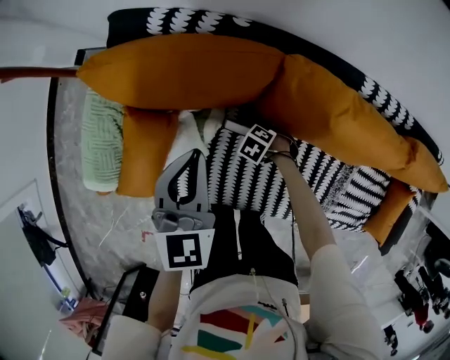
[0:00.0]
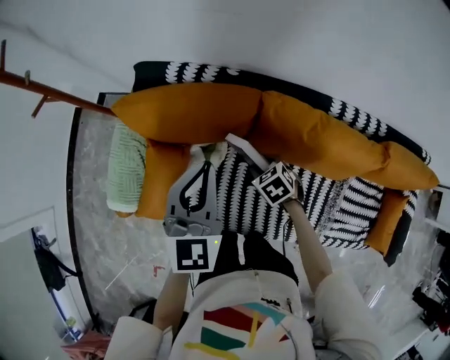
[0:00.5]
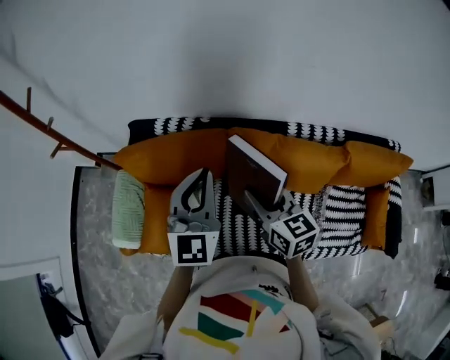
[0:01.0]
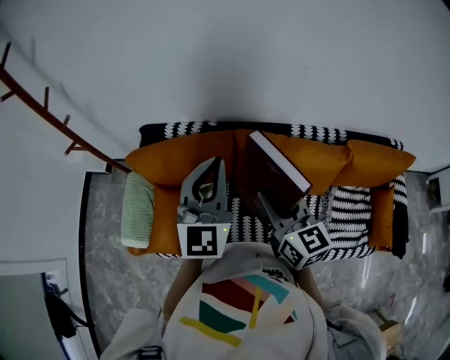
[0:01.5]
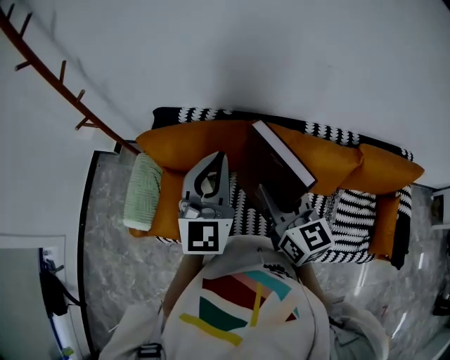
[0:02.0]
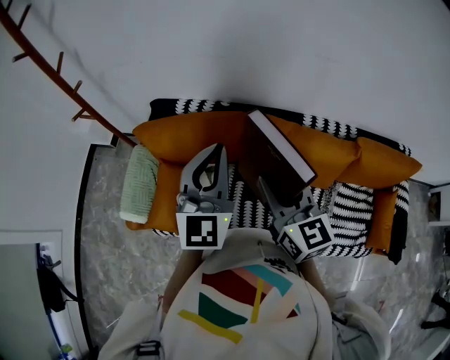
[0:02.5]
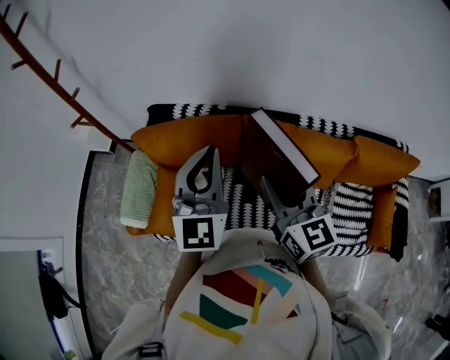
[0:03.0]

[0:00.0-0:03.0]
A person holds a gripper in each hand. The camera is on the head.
0:00.0 to 0:01.5: The left gripper moves upward, some 30 cm, and changes its angle by approximately 30 degrees. The right gripper travels upward by about 60 cm, and points its fingers approximately 70 degrees further upward.
0:01.5 to 0:03.0: The grippers move only a little.

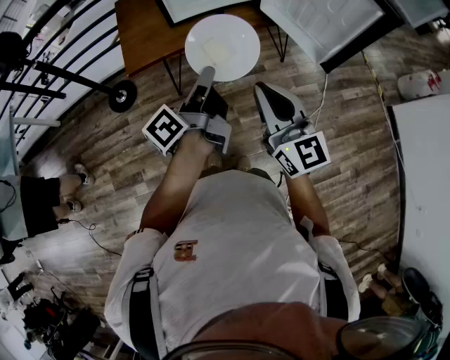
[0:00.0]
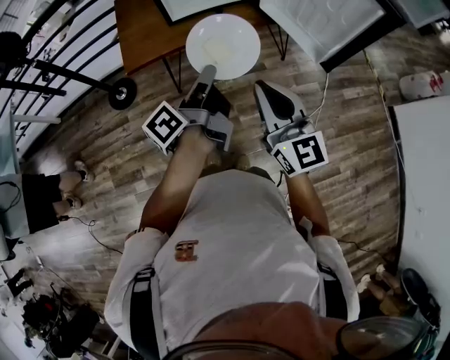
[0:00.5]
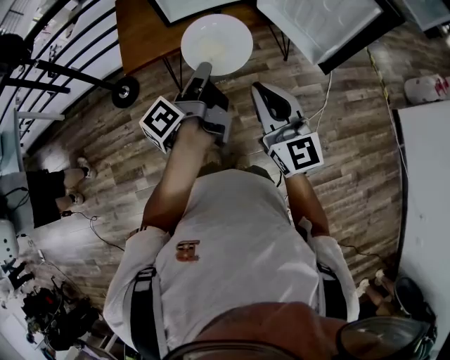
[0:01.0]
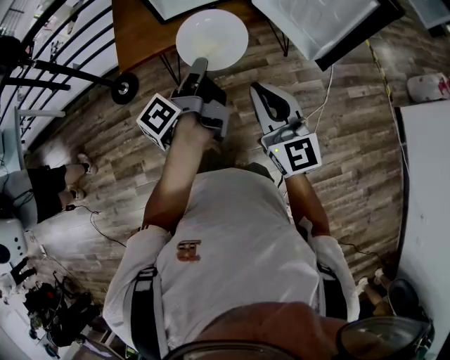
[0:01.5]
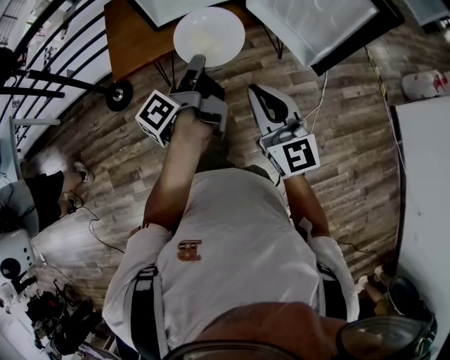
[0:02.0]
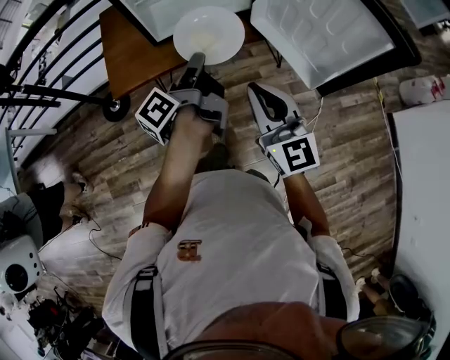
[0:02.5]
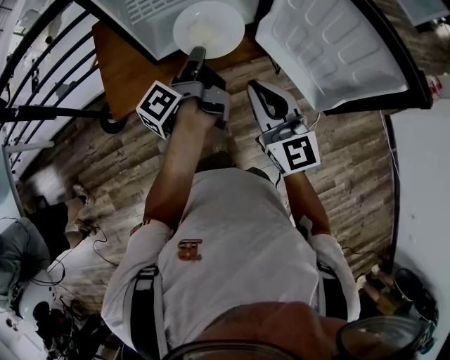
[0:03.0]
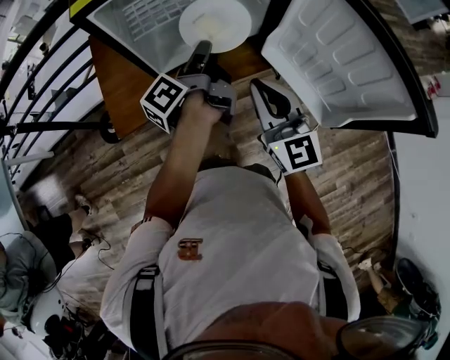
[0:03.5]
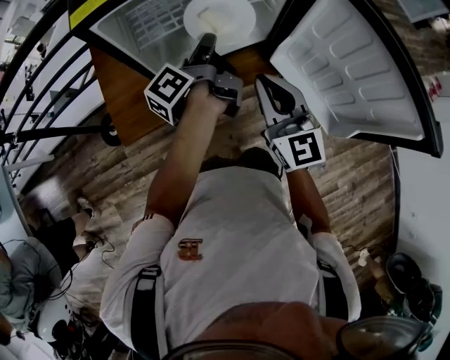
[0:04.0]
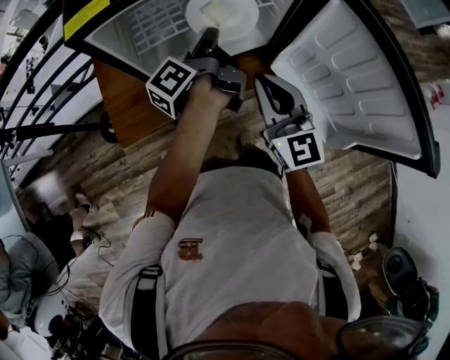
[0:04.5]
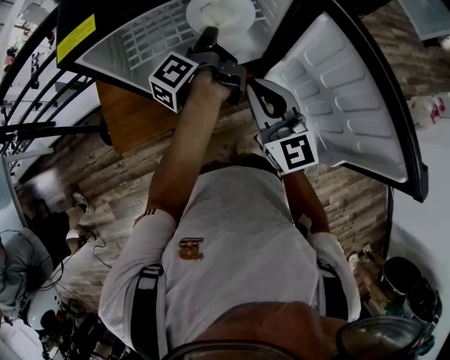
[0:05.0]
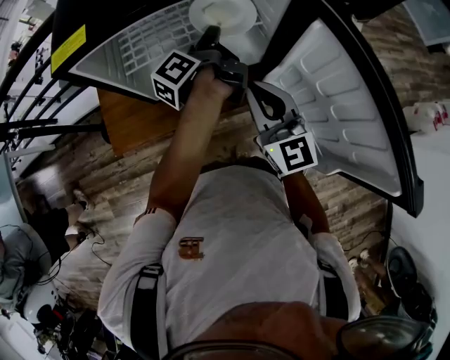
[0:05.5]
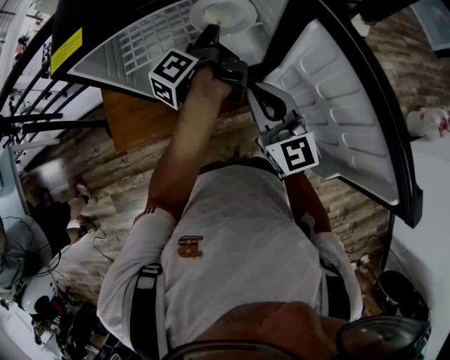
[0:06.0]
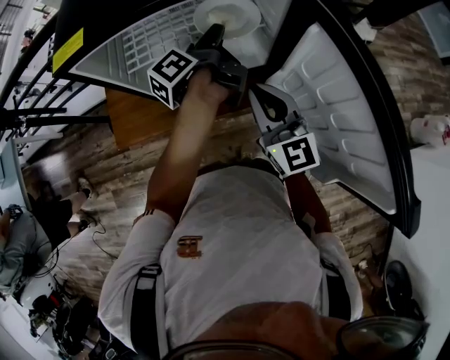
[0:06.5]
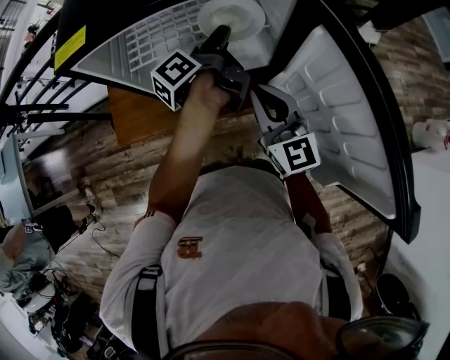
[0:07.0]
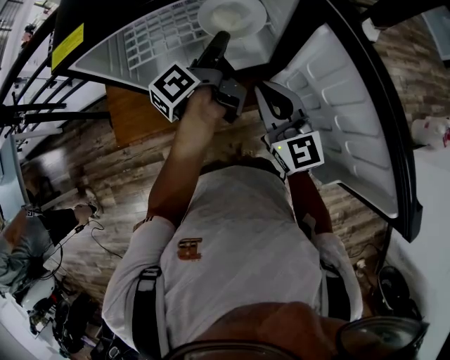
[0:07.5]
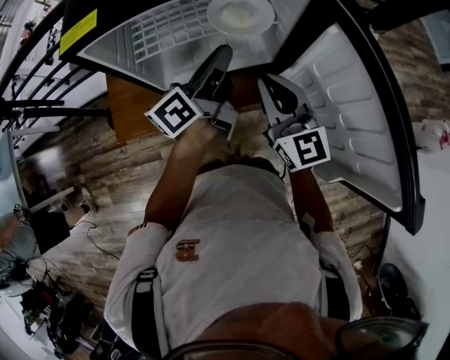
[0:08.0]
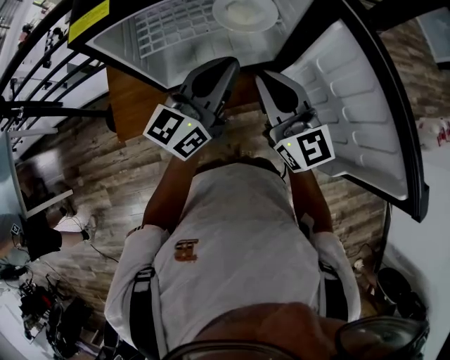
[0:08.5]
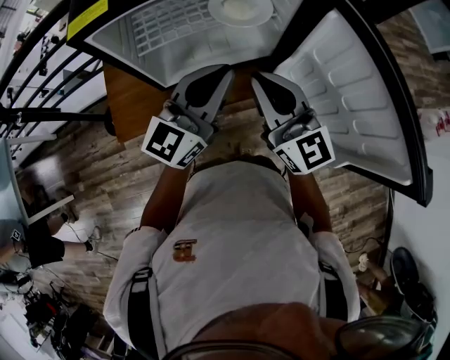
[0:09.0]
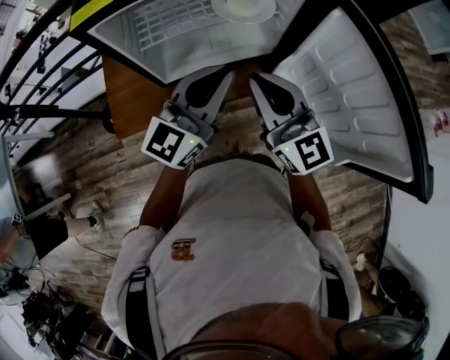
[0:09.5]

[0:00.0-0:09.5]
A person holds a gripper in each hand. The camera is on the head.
0:02.0 to 0:04.0: The right gripper shifts by about 10 cm.
0:04.0 to 0:05.5: The right gripper changes place by about 10 cm.
0:07.5 to 0:09.5: The right gripper shifts by roughly 10 cm.

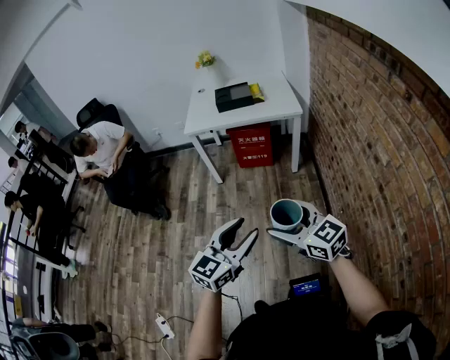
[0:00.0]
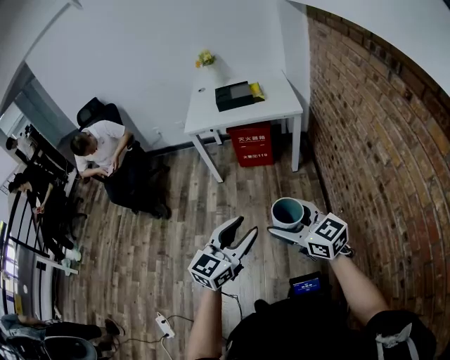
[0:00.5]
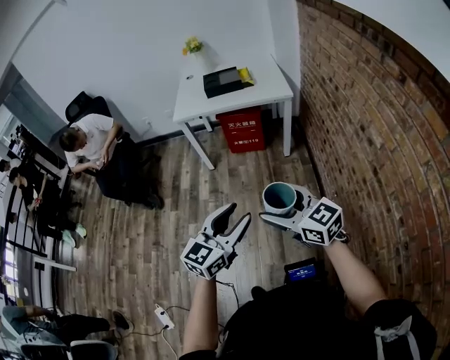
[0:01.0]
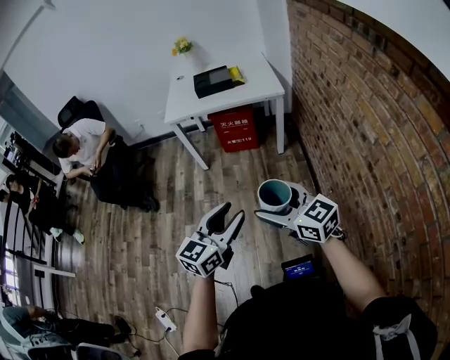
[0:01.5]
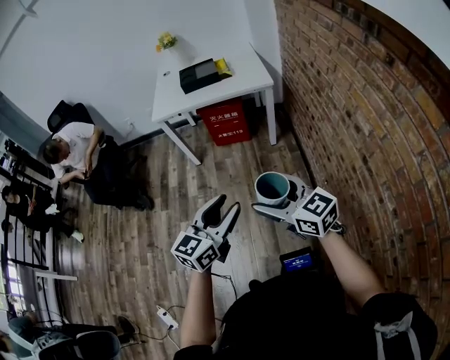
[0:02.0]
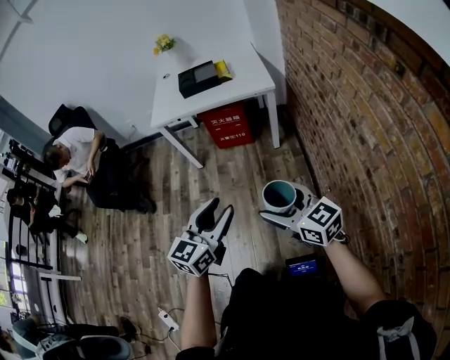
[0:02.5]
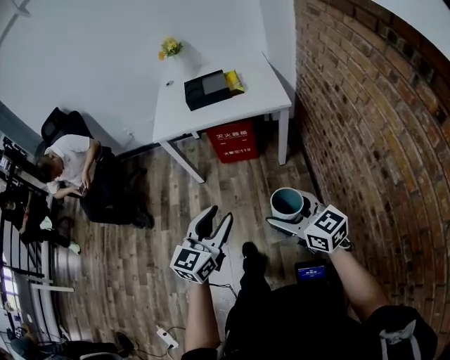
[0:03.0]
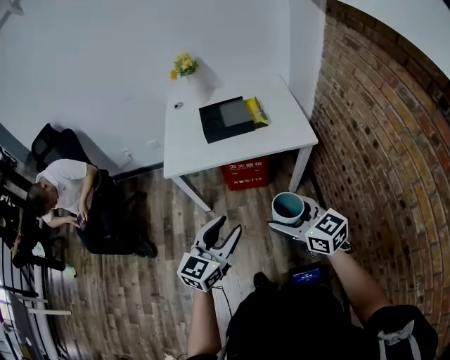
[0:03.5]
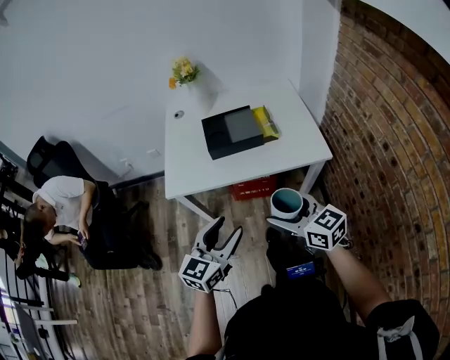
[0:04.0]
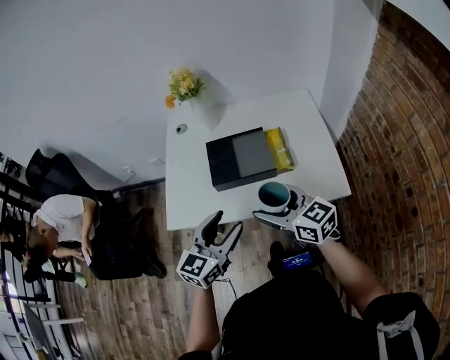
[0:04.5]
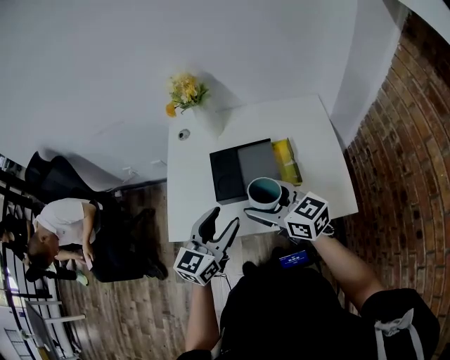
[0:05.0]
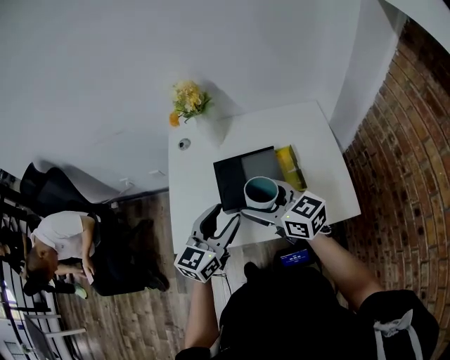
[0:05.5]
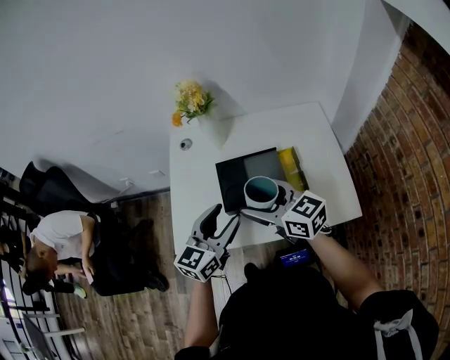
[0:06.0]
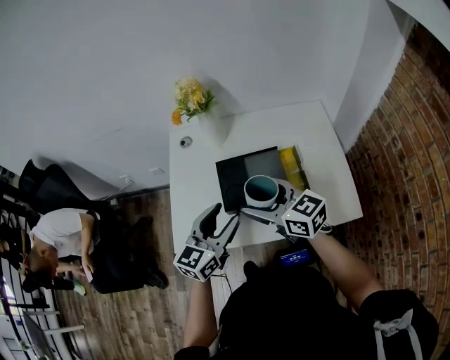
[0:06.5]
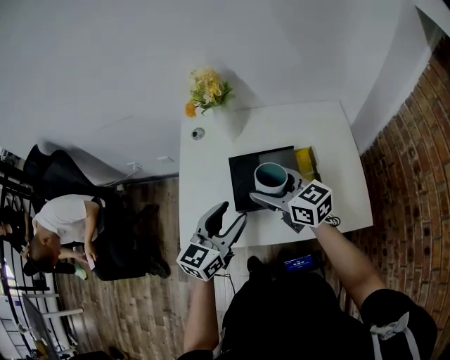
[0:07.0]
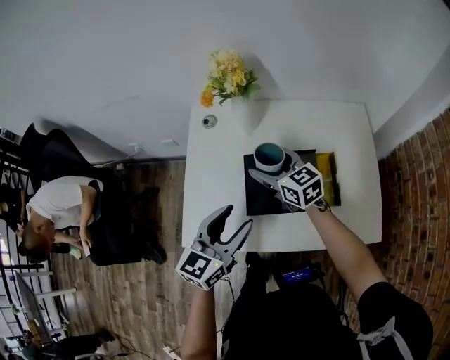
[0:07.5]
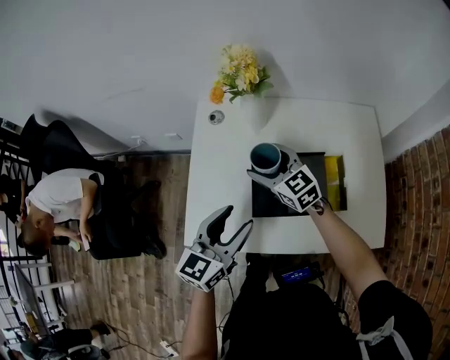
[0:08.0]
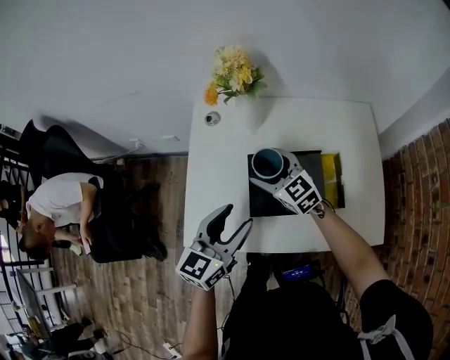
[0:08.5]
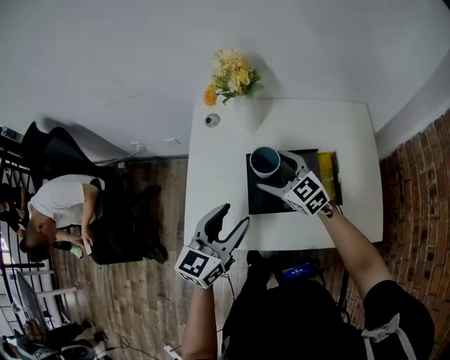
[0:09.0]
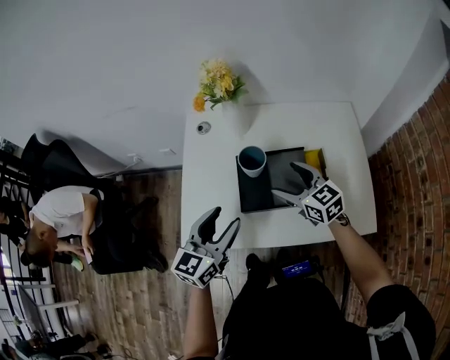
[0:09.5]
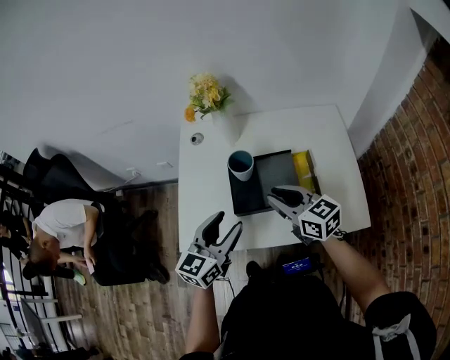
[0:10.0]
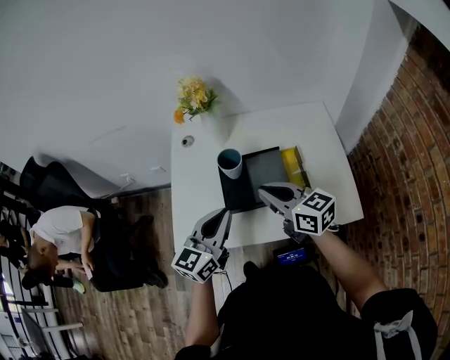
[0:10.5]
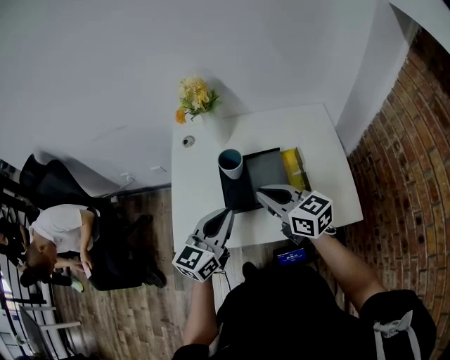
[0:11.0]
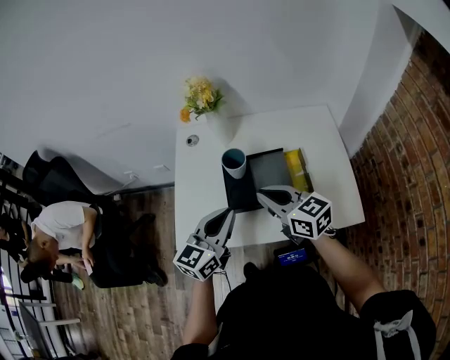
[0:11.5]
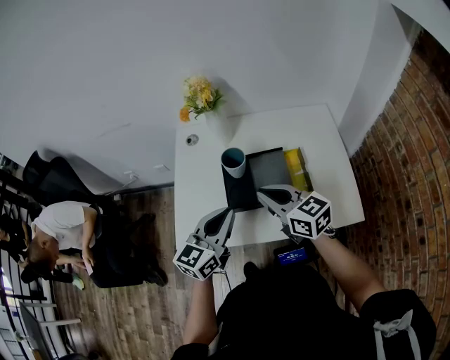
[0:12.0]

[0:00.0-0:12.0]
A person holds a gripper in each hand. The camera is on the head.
0:00.0 to 0:02.0: The right gripper moves about 5 cm. Meanwhile the left gripper shifts by approximately 5 cm.
0:02.0 to 0:04.0: The two grippers travel together, forward, some 50 cm.
0:04.0 to 0:06.0: The grippers both shift forward by about 35 cm.
0:06.0 to 0:08.0: The right gripper shifts some 20 cm forward and downward. Meanwhile the left gripper travels forward and to the left by approximately 5 cm.
0:08.0 to 0:10.0: The left gripper ends up approximately 5 cm from where it was. Meanwhile the right gripper goes some 20 cm backward, to the right and upward, and closes.
0:10.0 to 0:12.0: The left gripper closes.

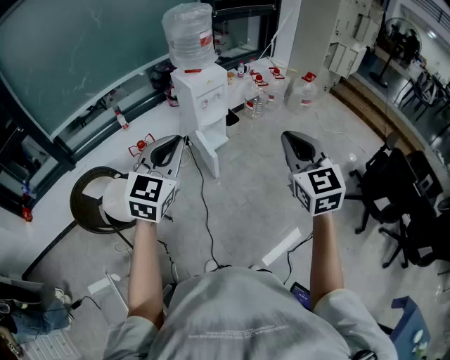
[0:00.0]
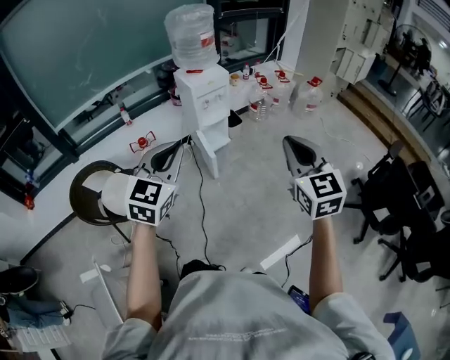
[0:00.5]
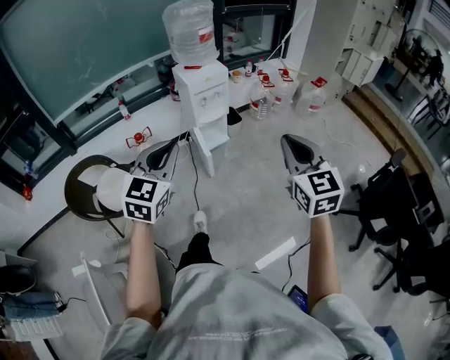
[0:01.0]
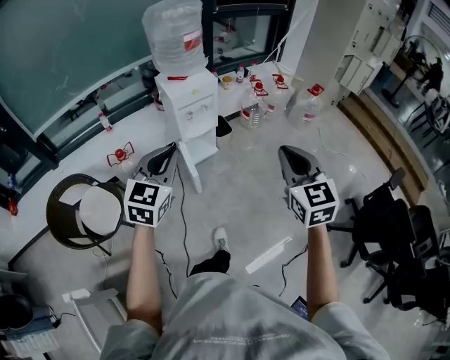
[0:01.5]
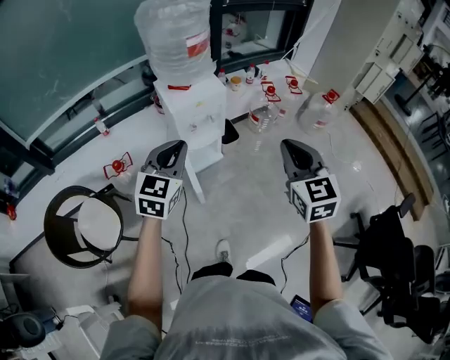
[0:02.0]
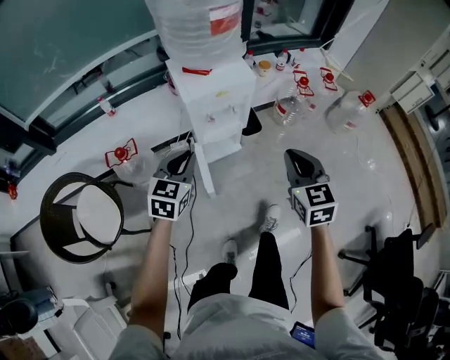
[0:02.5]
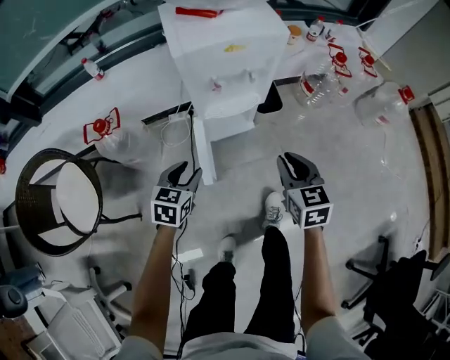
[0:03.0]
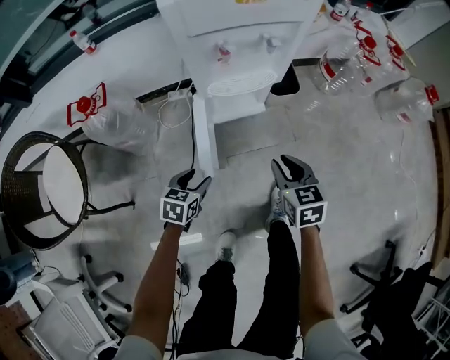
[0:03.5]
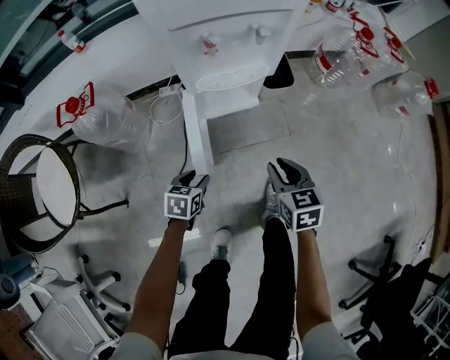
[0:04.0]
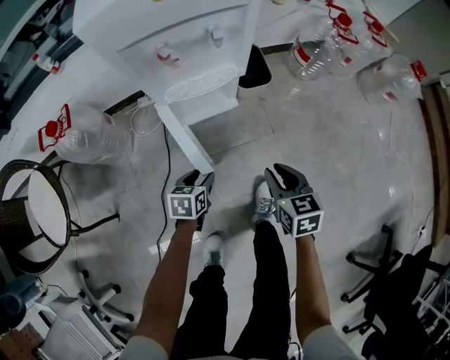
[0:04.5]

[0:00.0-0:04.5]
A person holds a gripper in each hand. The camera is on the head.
0:00.0 to 0:02.0: Both grippers are carried forward, some 40 cm.
0:02.0 to 0:04.5: Both grippers travel together downward, about 70 cm. The left gripper tilts its fingers approximately 40 degrees downward, and opens up, while the right gripper turns by approximately 40 degrees, and opens its fingers.
